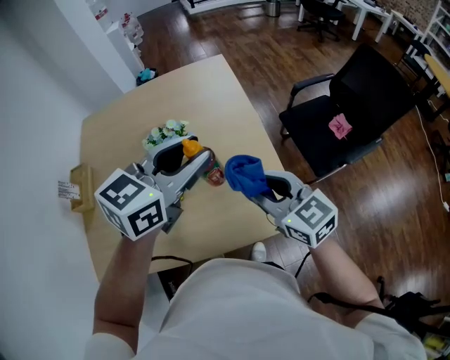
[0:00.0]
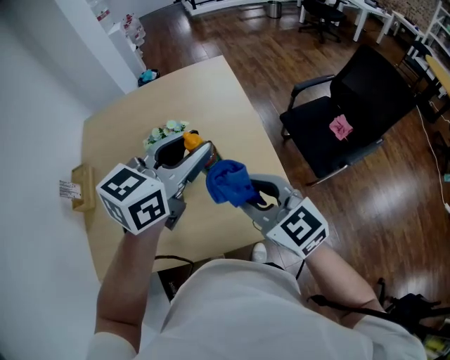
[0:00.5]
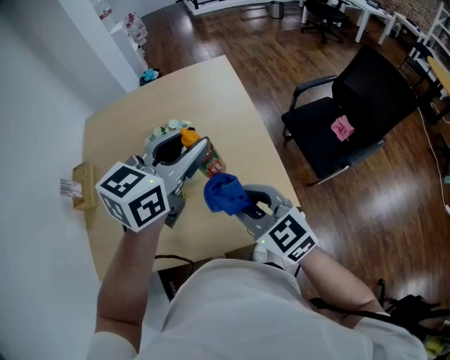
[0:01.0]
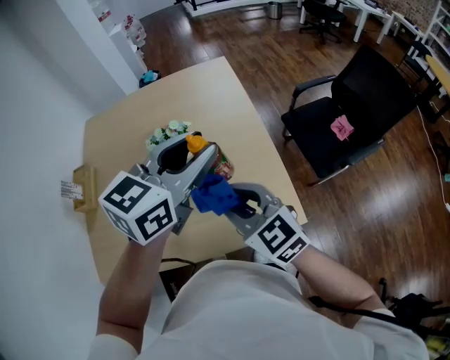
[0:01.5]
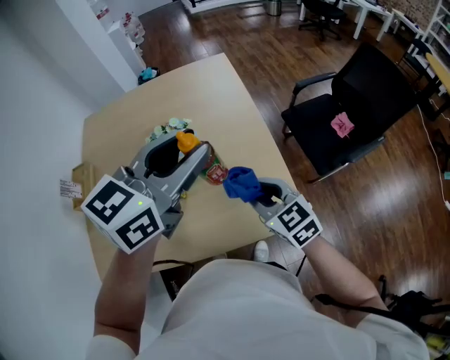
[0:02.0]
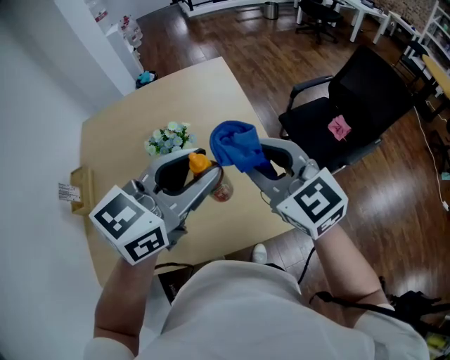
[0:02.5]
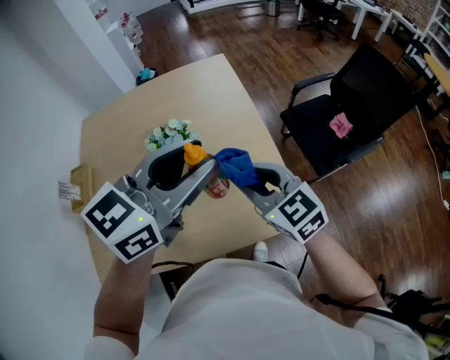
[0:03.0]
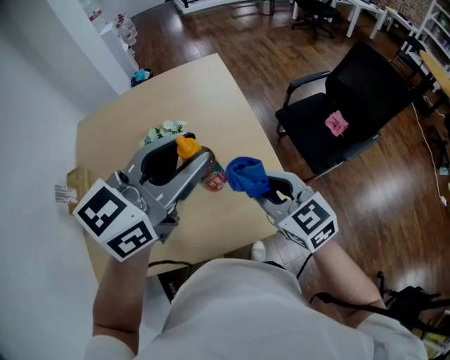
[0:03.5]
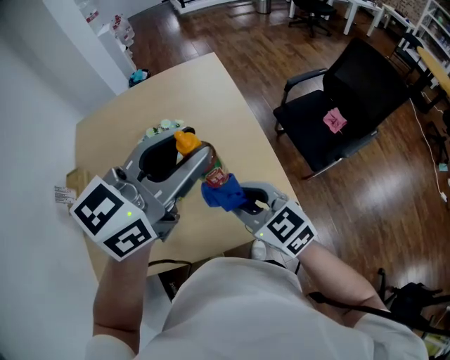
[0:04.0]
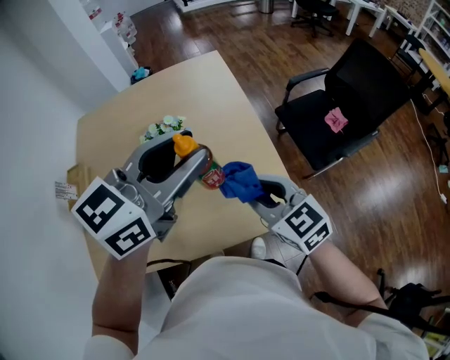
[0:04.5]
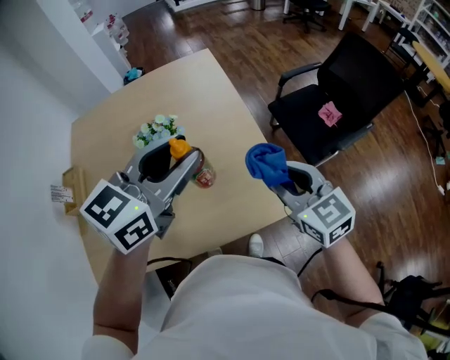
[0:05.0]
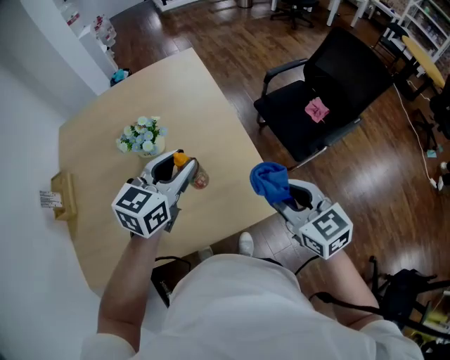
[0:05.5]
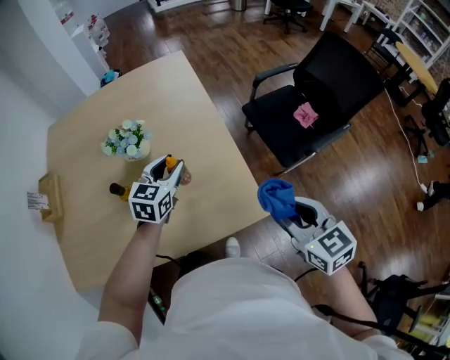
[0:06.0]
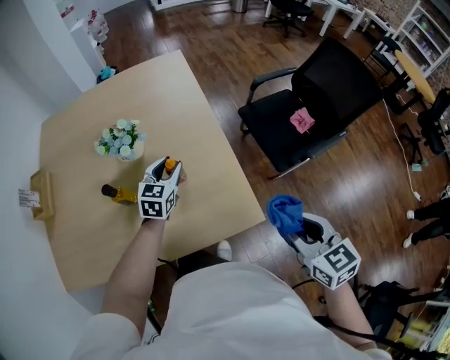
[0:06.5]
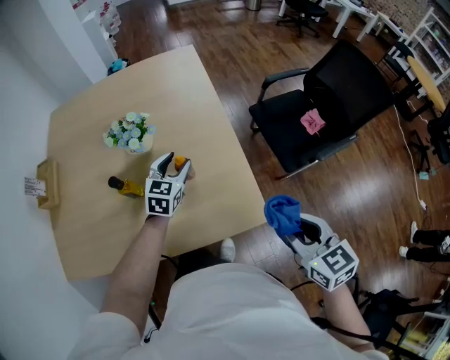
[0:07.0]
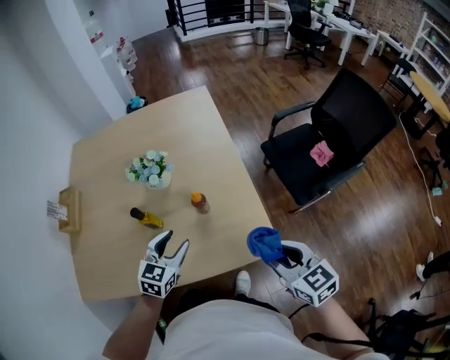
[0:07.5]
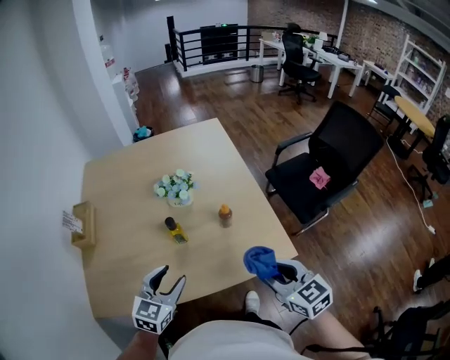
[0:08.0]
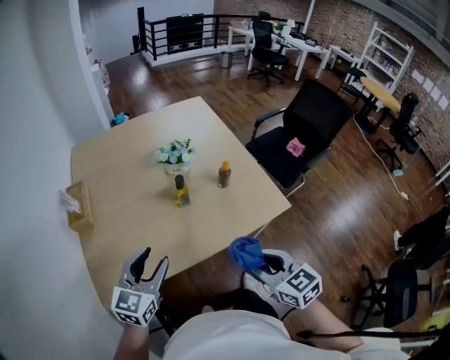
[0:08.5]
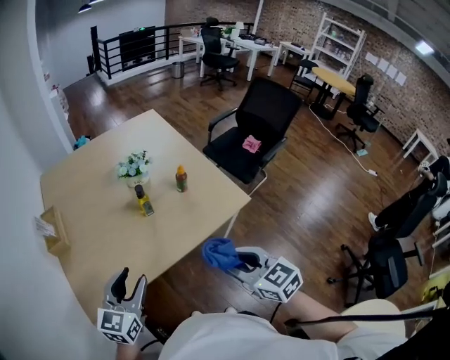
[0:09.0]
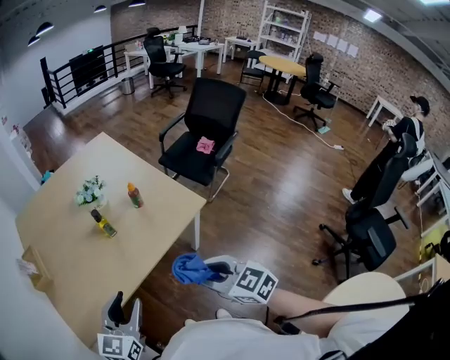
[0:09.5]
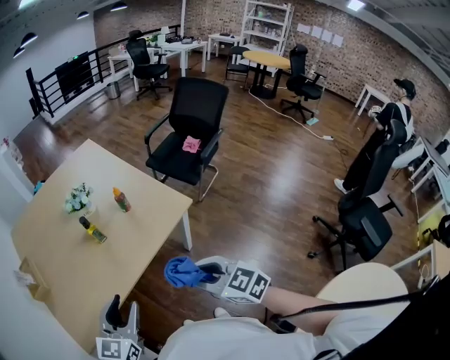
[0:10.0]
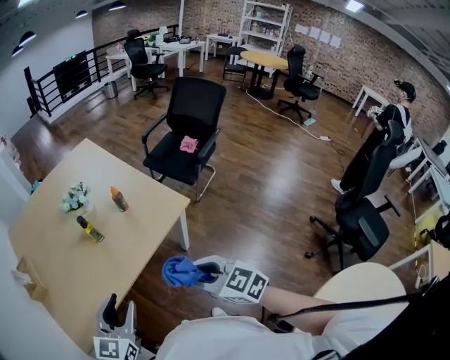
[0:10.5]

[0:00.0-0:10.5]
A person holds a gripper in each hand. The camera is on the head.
0:00.0 to 0:02.0: The right gripper is displaced downward by some 5 cm.
0:02.0 to 0:04.0: The right gripper goes upward and returns, about 15 cm each way.
0:04.0 to 0:06.5: The left gripper goes about 35 cm downward, and turns by about 30 degrees. The right gripper heads to the right, covering approximately 25 cm, and swivels some 30 degrees.
0:06.5 to 0:08.5: The right gripper travels to the left and backward by some 35 cm; the left gripper moves backward, to the left and upward, about 50 cm.
0:08.5 to 0:10.5: The right gripper moves backward and to the right, approximately 15 cm; the left gripper is displaced to the right and backward by some 15 cm.

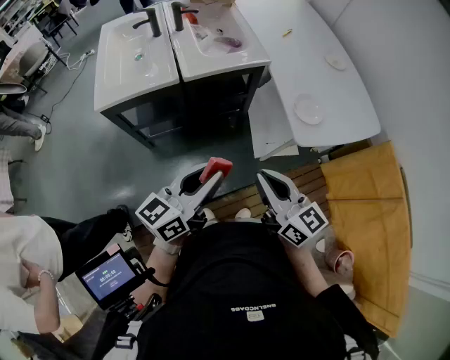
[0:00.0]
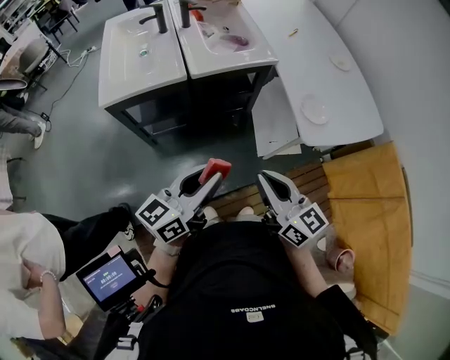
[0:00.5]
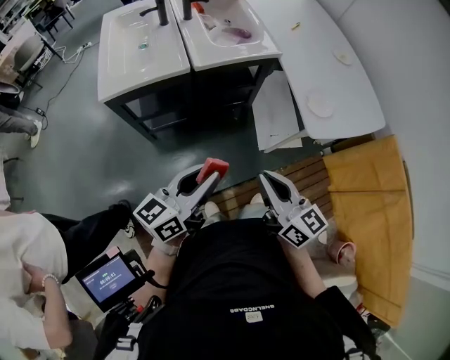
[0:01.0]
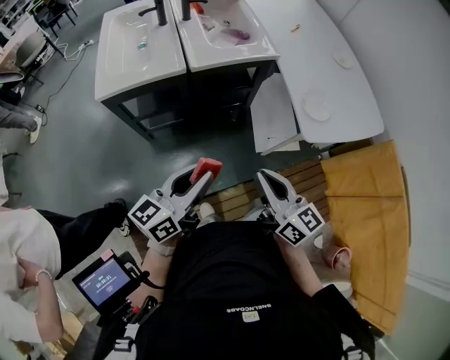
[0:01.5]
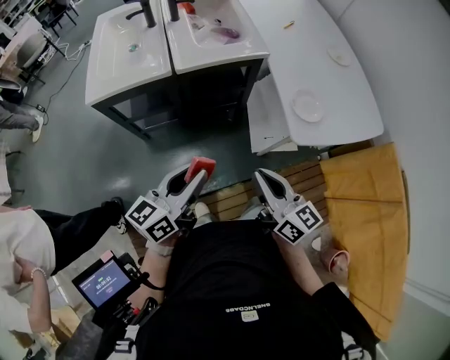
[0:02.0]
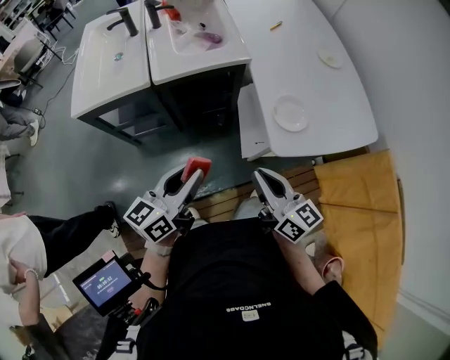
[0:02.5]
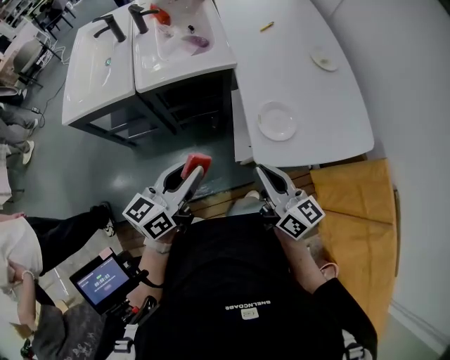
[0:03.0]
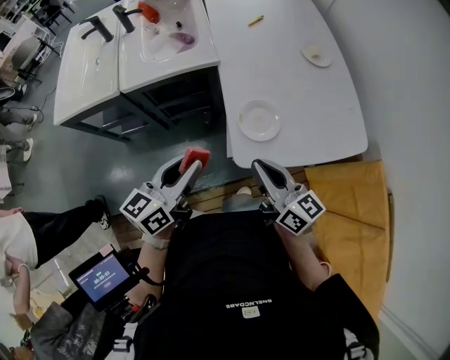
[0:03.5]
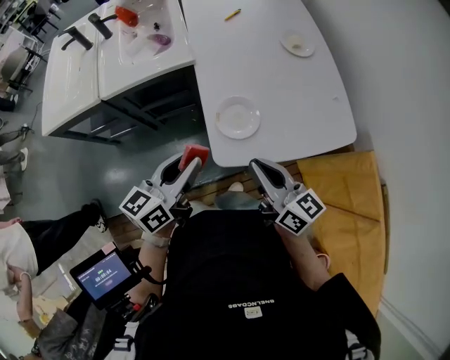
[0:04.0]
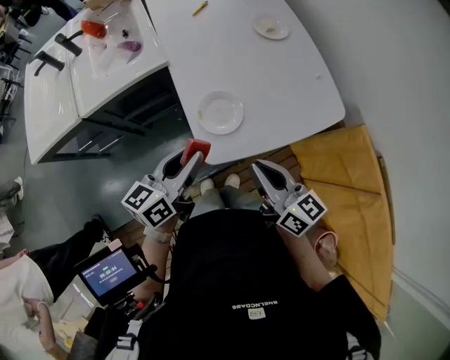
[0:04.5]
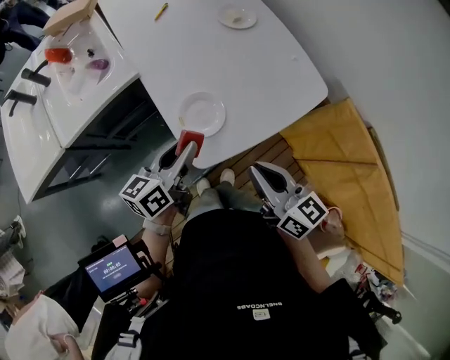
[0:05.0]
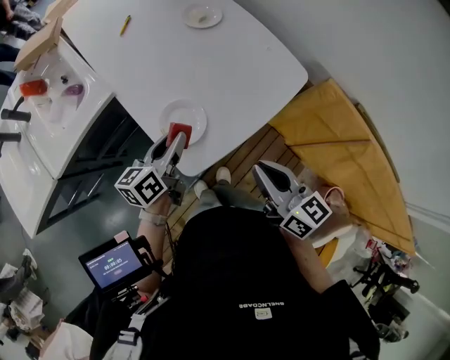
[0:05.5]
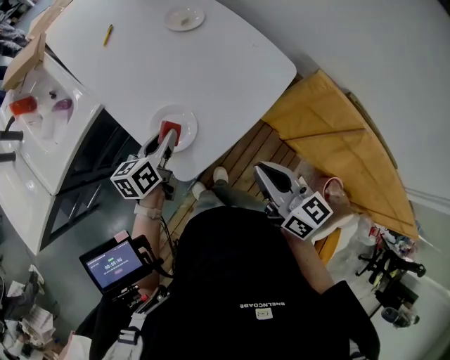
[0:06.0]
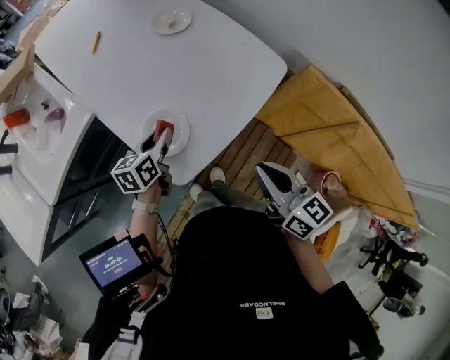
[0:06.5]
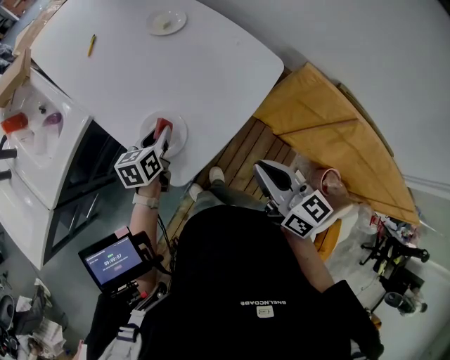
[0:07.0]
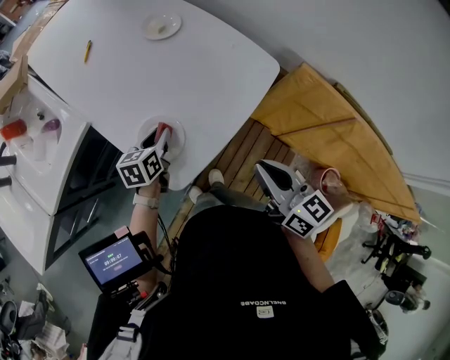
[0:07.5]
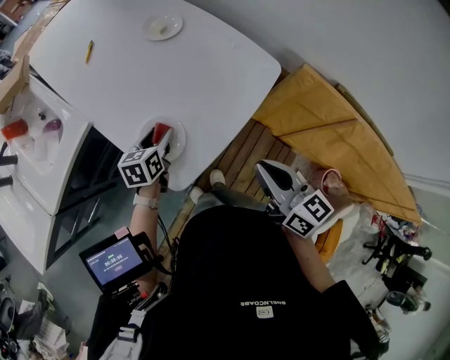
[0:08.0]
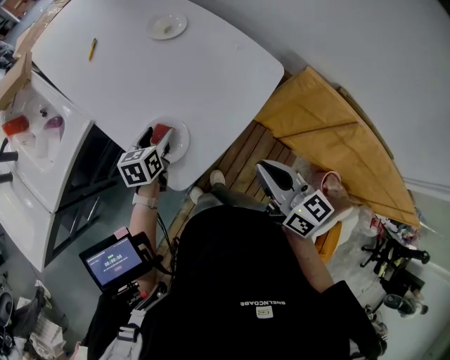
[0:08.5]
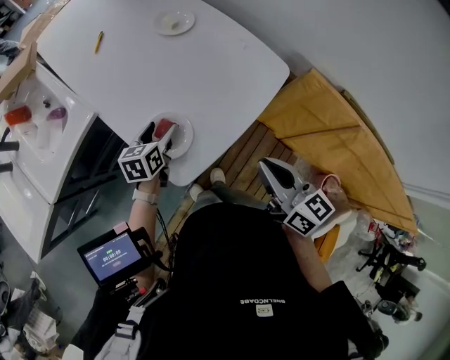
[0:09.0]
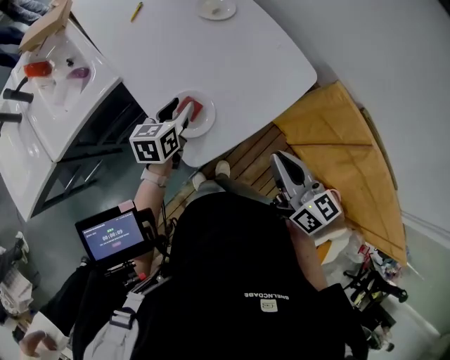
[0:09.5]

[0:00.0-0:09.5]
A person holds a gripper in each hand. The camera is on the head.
0:00.0 to 0:02.0: The right gripper changes place by some 5 cm.
0:02.0 to 0:04.0: Both grippers move to the right and forward, about 30 cm.
0:04.0 to 0:05.5: The left gripper travels forward, downward and to the right by some 15 cm, and swivels approximately 20 degrees. Meanwhile the right gripper heads to the right, covering roughly 10 cm, and turns by approximately 30 degrees.
0:05.5 to 0:07.5: The left gripper is displaced downward and forward by approximately 10 cm, and rotates roughly 30 degrees; the right gripper heads to the right, covering roughly 5 cm.
0:07.5 to 0:09.5: The left gripper ends up roughly 5 cm from where it was, and opens and closes again.

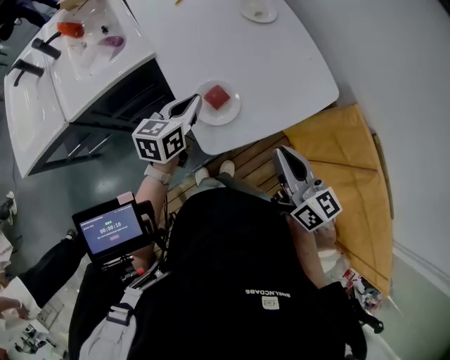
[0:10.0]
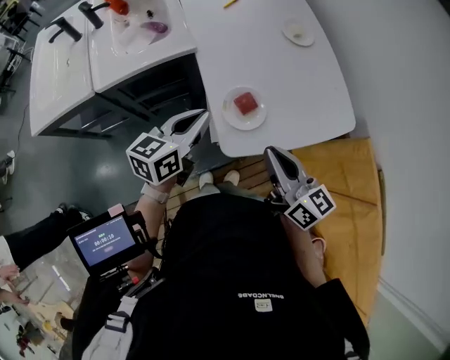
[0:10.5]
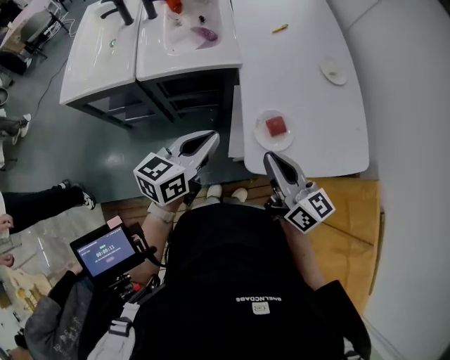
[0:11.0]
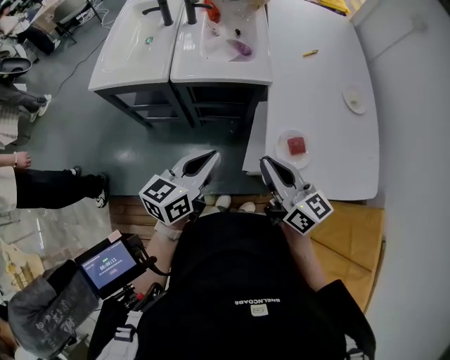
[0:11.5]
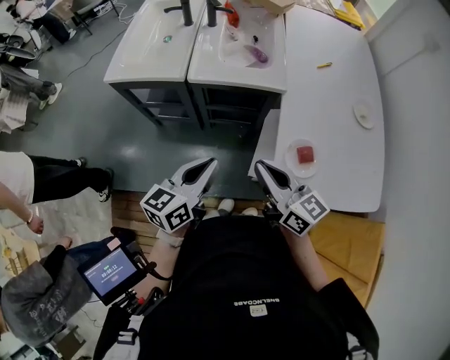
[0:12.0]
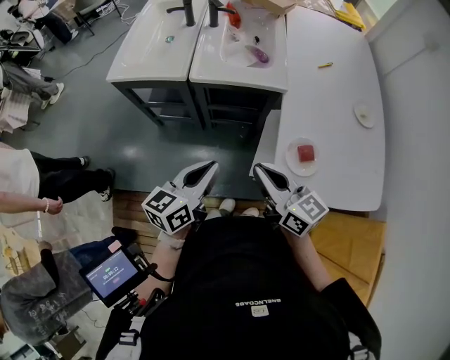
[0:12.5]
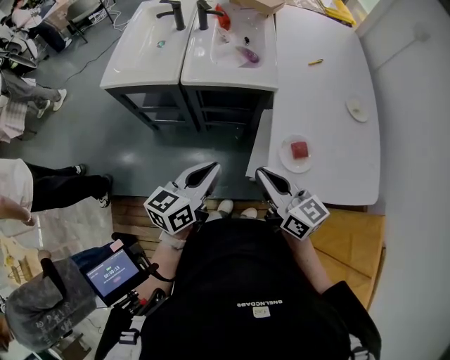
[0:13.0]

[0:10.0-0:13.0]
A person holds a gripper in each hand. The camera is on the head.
0:10.0 to 0:11.5: The right gripper shifts by about 25 cm, and changes its angle by approximately 40 degrees, while the left gripper changes place by about 25 cm, and turns by some 30 degrees.

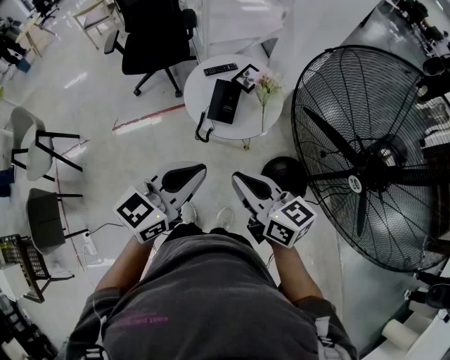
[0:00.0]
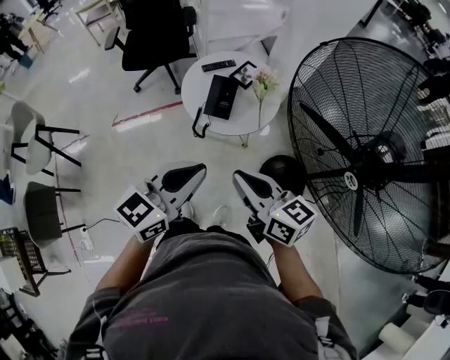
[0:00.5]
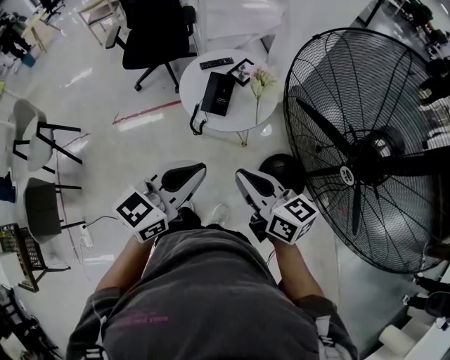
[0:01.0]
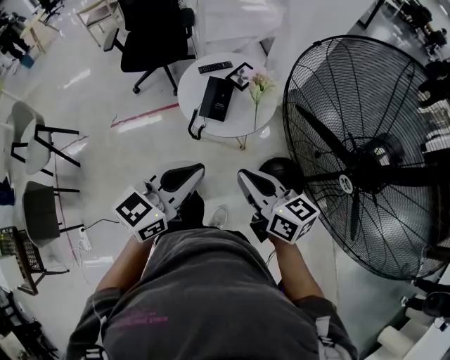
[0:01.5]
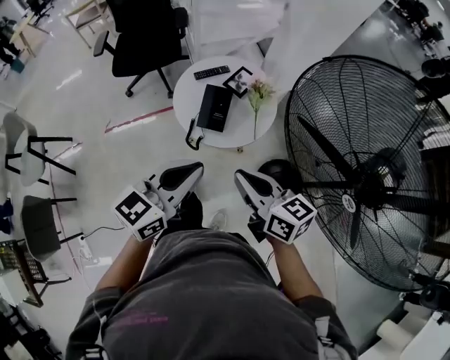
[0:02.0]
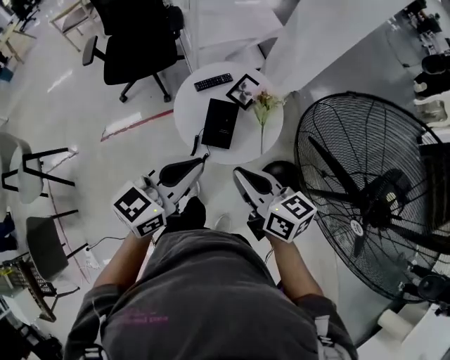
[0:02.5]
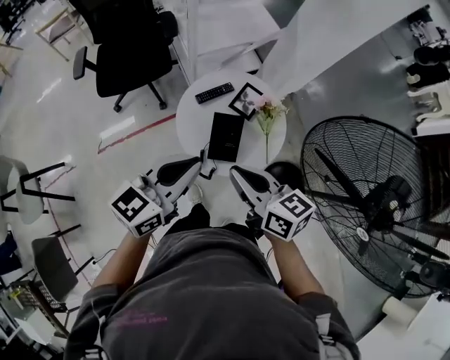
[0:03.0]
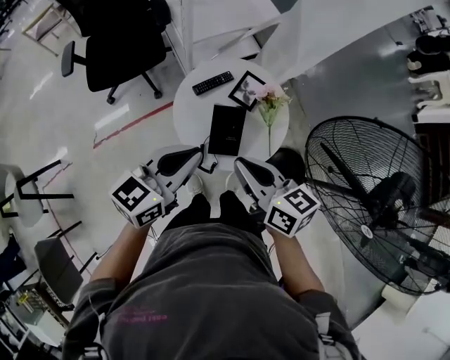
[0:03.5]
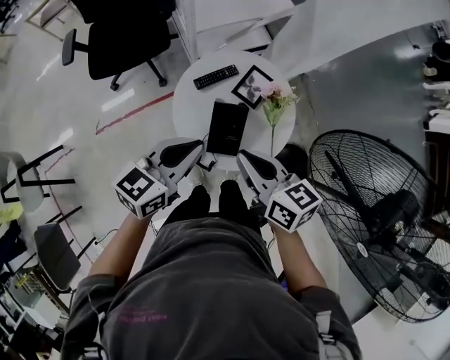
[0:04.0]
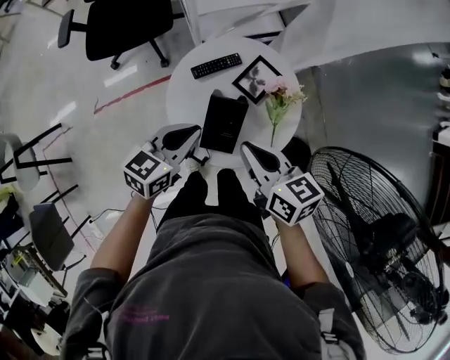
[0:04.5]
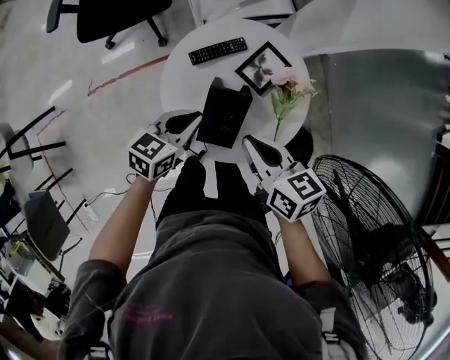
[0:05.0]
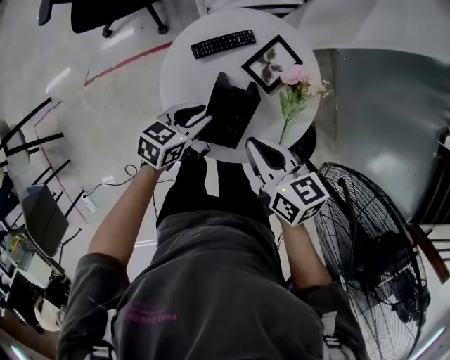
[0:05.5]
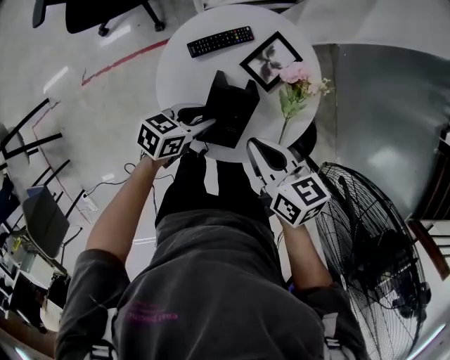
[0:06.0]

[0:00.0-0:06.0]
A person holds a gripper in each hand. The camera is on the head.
0:00.0 to 0:02.0: The two grippers go about 5 cm forward.
0:02.0 to 0:04.0: The right gripper goes roughly 25 cm forward, while the left gripper heads forward and downward, covering approximately 25 cm.
0:04.0 to 0:06.0: The right gripper travels downward by about 15 cm, while the left gripper travels downward by roughly 30 cm, rotates some 30 degrees, and opens its fingers.
